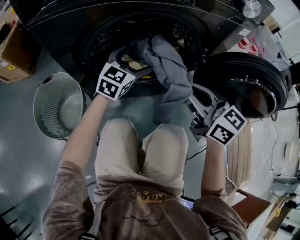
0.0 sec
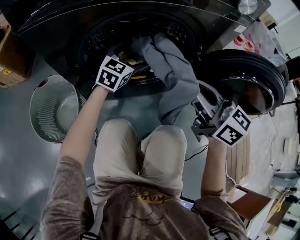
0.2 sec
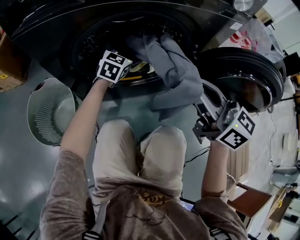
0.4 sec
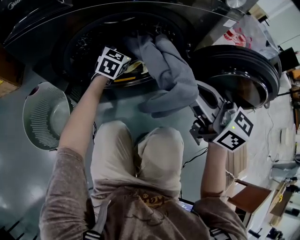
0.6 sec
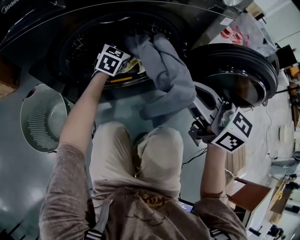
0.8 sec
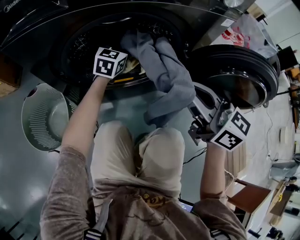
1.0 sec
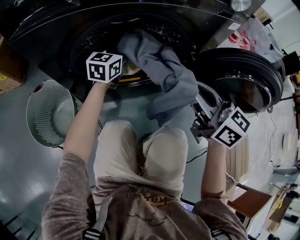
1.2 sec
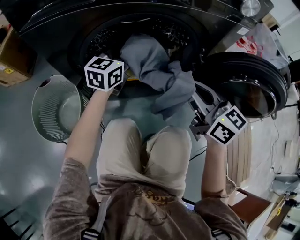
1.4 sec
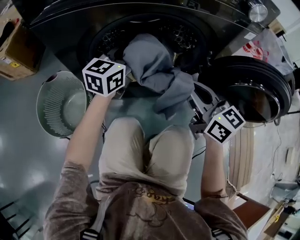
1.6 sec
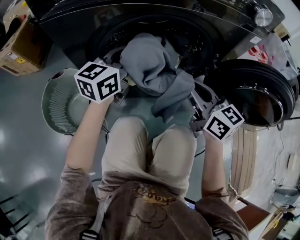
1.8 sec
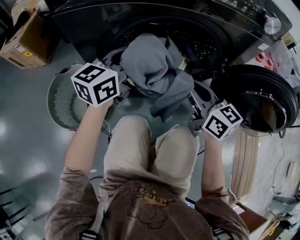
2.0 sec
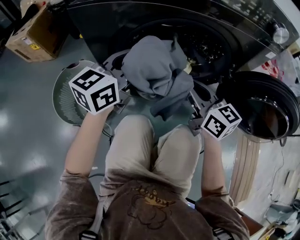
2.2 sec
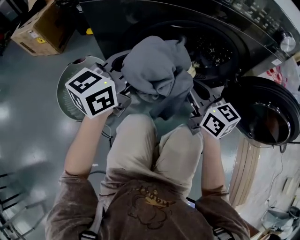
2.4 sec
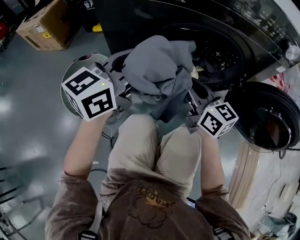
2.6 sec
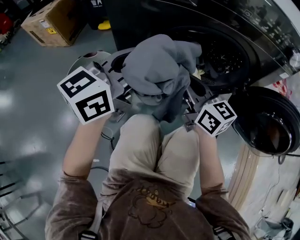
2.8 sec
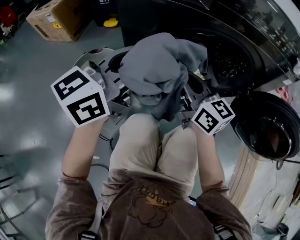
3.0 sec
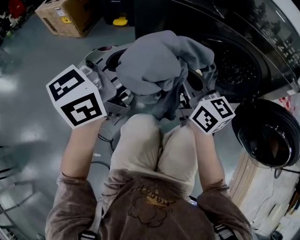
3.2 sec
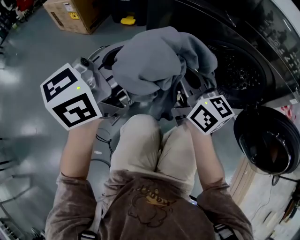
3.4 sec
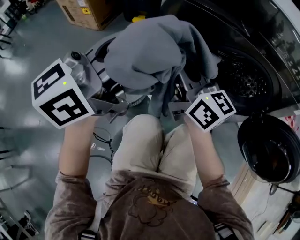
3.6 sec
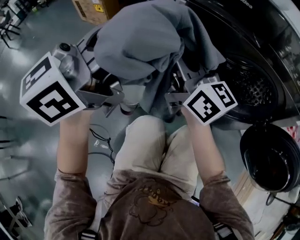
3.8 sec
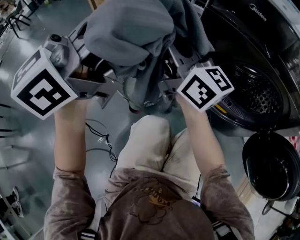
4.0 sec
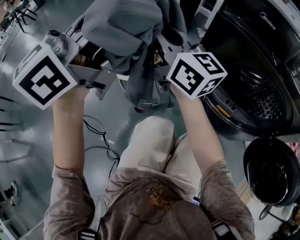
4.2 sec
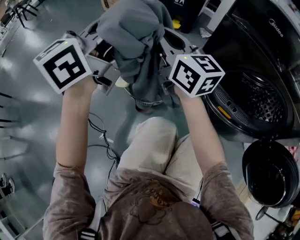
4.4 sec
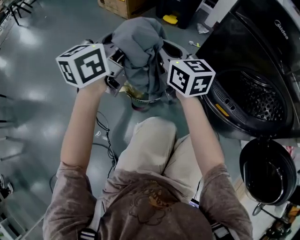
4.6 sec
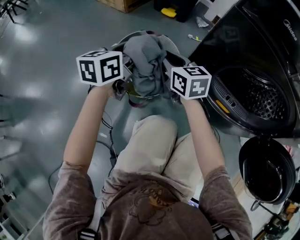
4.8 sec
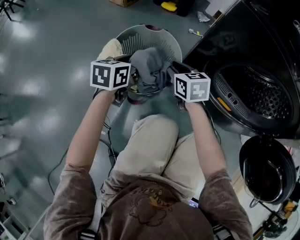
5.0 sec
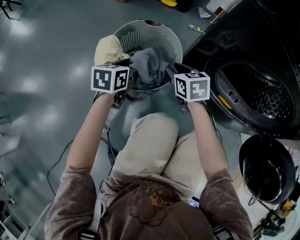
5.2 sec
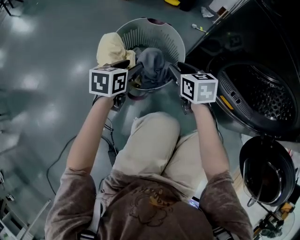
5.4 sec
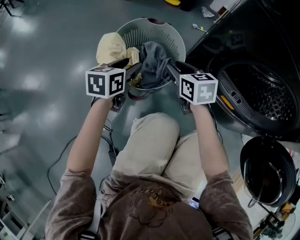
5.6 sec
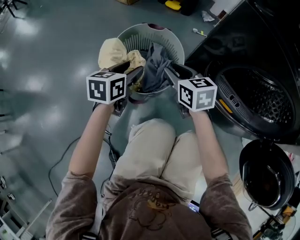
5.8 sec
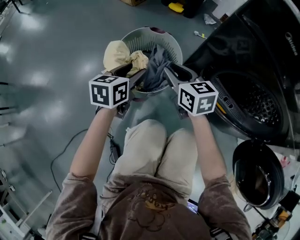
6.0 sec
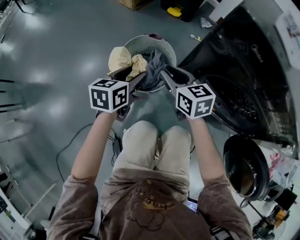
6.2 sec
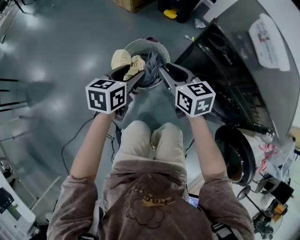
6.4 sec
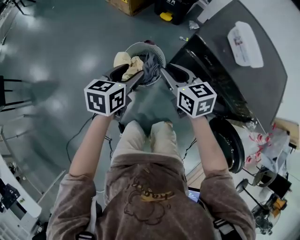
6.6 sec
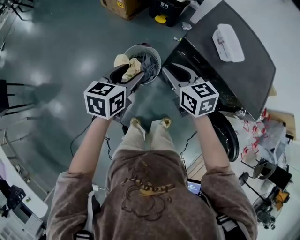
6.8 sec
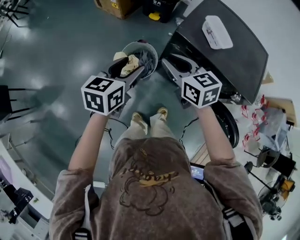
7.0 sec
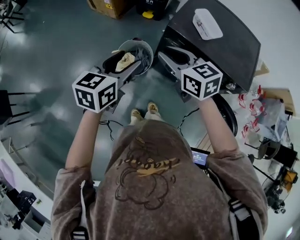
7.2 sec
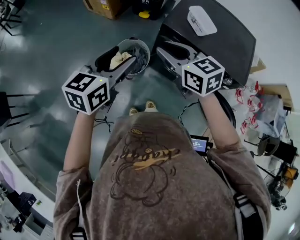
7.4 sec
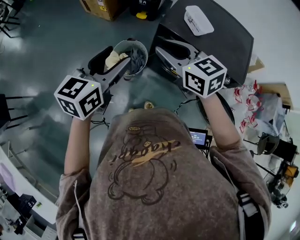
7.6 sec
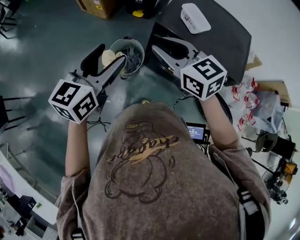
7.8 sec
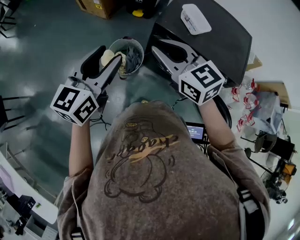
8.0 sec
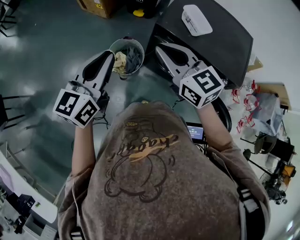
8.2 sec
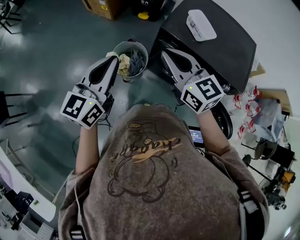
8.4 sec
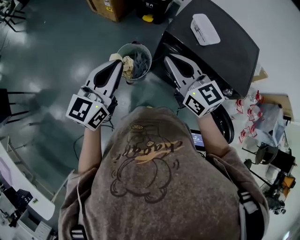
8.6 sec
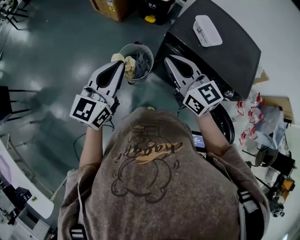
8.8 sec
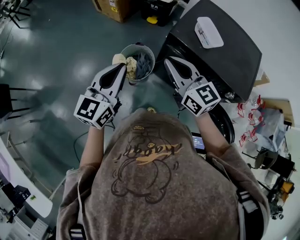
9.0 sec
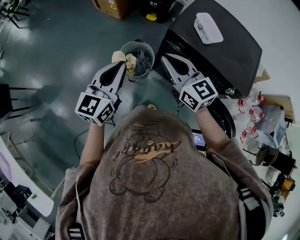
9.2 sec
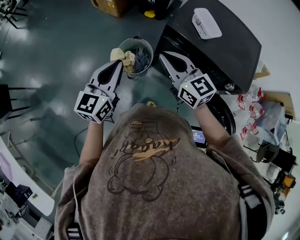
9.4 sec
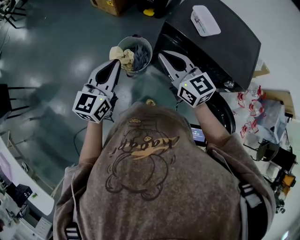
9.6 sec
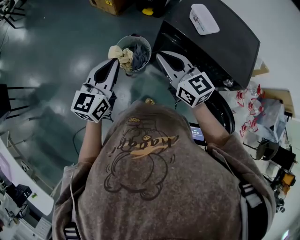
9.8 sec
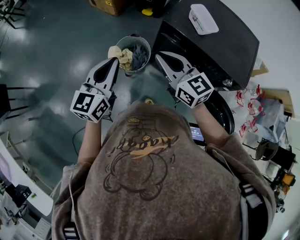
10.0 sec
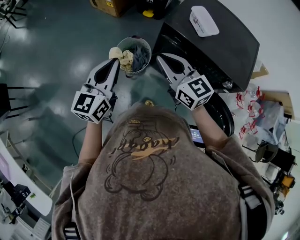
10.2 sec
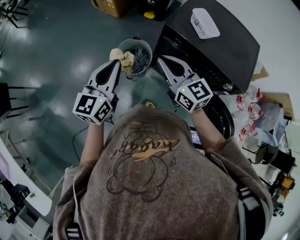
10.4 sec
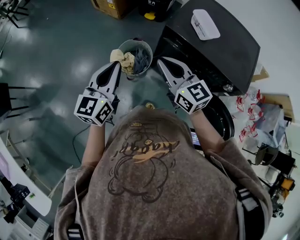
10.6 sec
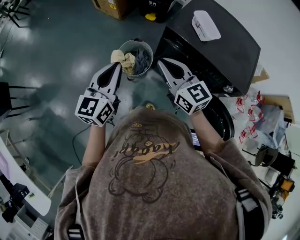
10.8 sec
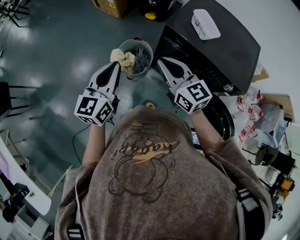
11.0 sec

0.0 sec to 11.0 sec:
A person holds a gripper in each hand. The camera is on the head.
0.0 sec to 1.6 sec: The left gripper travels upward by some 5 cm, and closes its fingers.
1.6 sec to 3.2 sec: The right gripper is displaced to the left by roughly 25 cm, while the left gripper goes some 30 cm to the left, backward and upward.
3.2 sec to 4.8 sec: The right gripper changes place by approximately 25 cm, and rotates some 30 degrees; the left gripper moves approximately 30 cm, and rotates approximately 40 degrees.
4.8 sec to 6.2 sec: The right gripper is displaced upward and backward by roughly 15 cm. Meanwhile the left gripper shifts about 10 cm backward, and goes downward and returns, roughly 15 cm each way.
6.2 sec to 7.8 sec: Both grippers move upward, some 50 cm. The left gripper swivels about 30 degrees.
7.8 sec to 9.4 sec: Both grippers move downward, approximately 5 cm. The left gripper closes up.
9.4 sec to 11.0 sec: The grippers stay close to where they were, moving slightly.

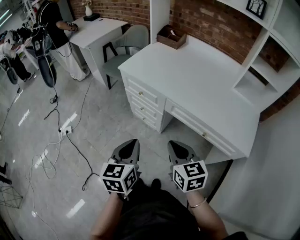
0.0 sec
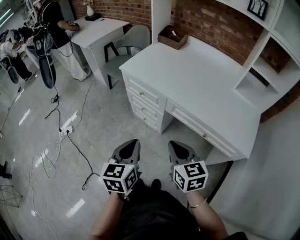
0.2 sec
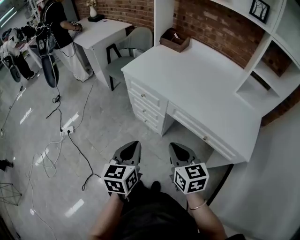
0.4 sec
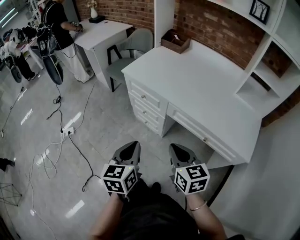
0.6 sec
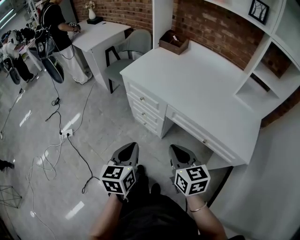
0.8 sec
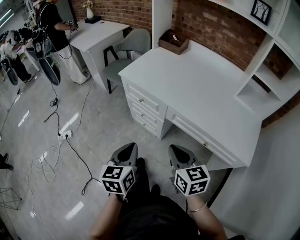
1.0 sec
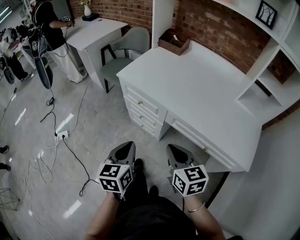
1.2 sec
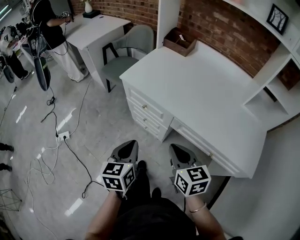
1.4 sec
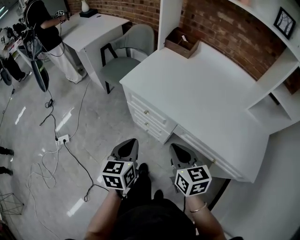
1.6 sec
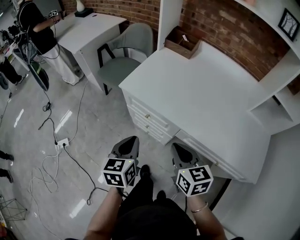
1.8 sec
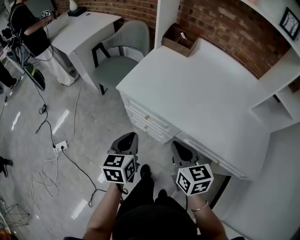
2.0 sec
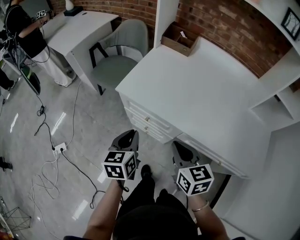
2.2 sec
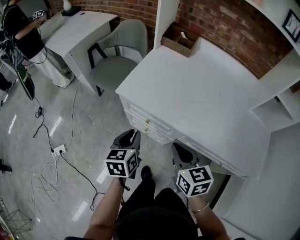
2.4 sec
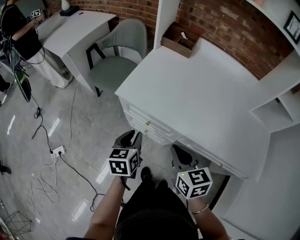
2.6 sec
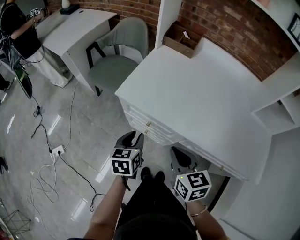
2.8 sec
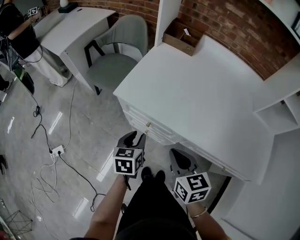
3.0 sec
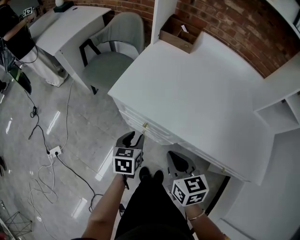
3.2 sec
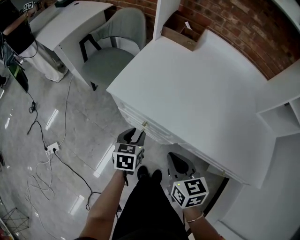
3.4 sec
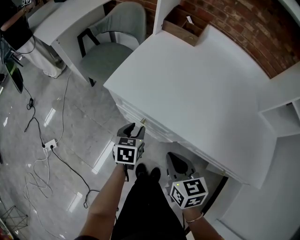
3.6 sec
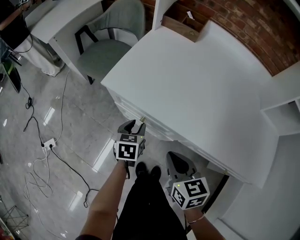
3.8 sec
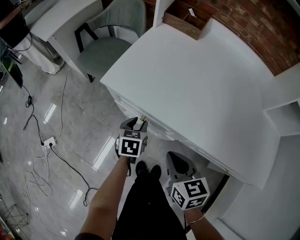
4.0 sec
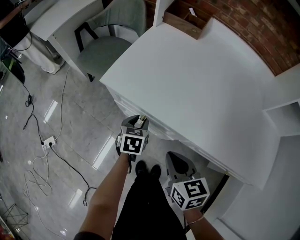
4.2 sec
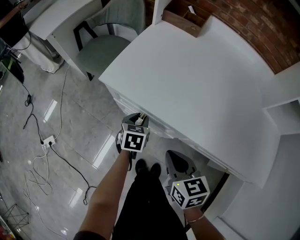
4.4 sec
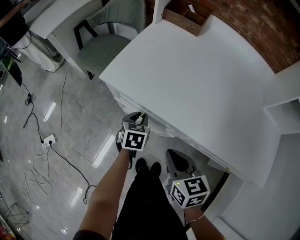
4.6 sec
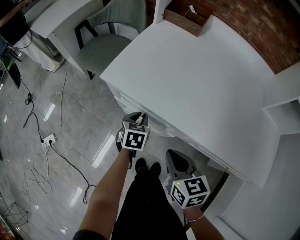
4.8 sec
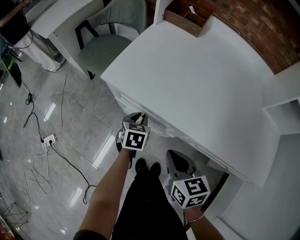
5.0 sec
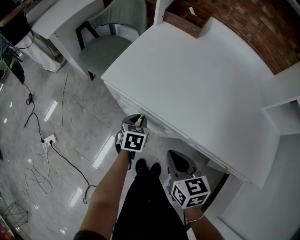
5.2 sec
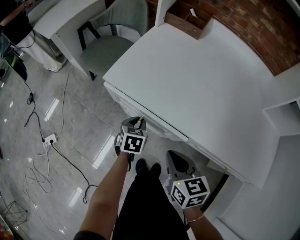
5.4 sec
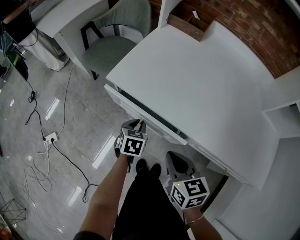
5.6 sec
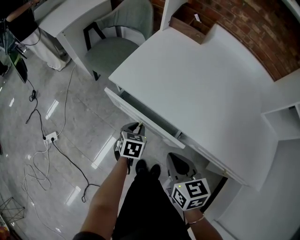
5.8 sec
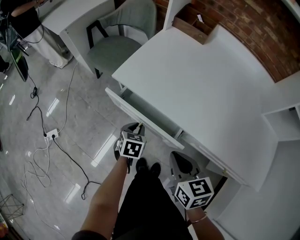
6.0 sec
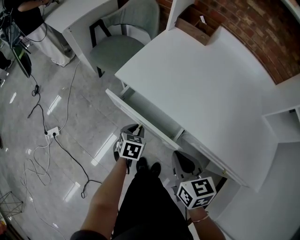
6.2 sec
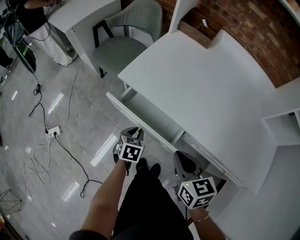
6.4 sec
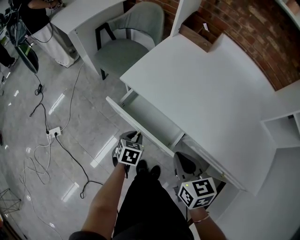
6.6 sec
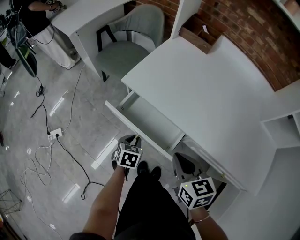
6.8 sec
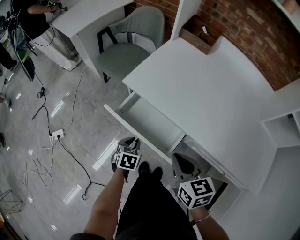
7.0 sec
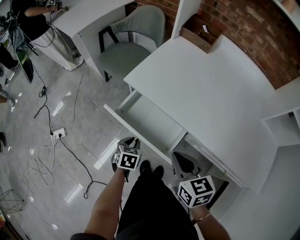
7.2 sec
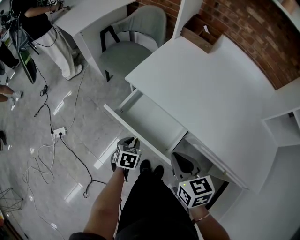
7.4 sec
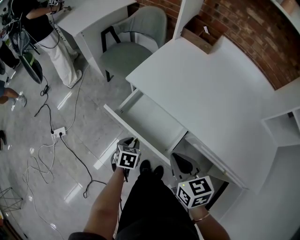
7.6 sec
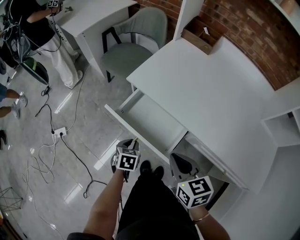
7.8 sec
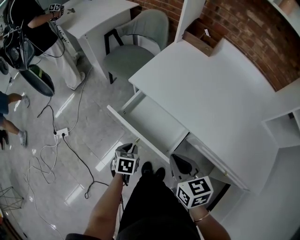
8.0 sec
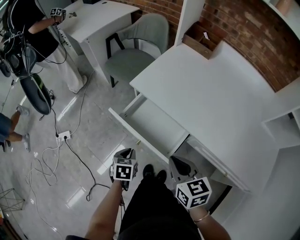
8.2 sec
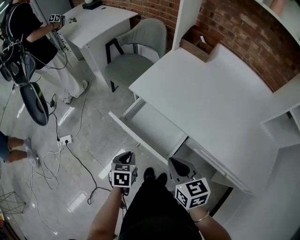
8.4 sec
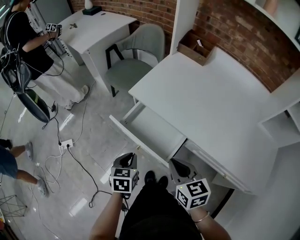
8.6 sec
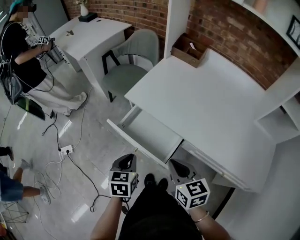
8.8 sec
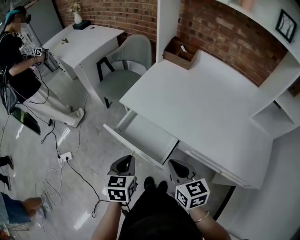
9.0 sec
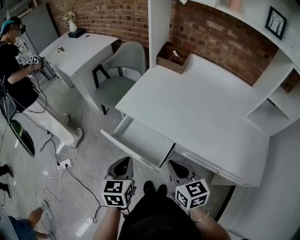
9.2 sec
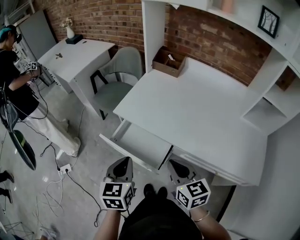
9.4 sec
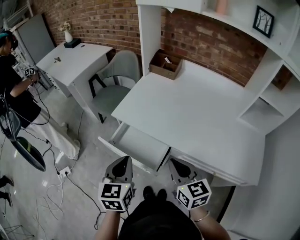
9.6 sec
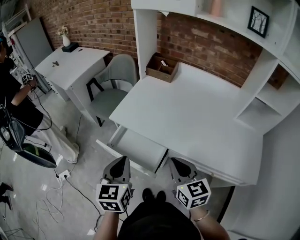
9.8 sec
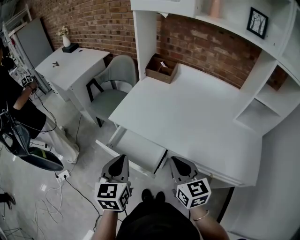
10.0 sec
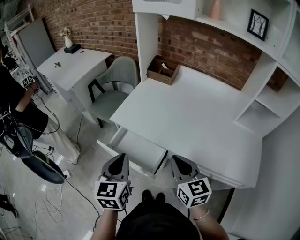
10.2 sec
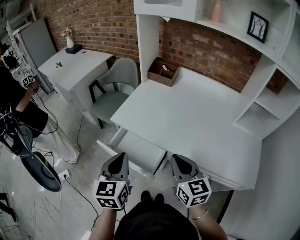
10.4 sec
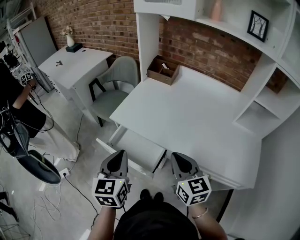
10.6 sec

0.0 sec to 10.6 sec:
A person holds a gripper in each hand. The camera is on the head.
0.0 sec to 1.6 sec: The two grippers go some 20 cm forward.
1.6 sec to 3.0 sec: The left gripper is displaced forward and downward by some 20 cm, and opens its fingers. Meanwhile the right gripper is displaced forward and downward by about 10 cm.
3.0 sec to 4.6 sec: The left gripper travels downward and forward by approximately 15 cm. Meanwhile the right gripper goes some 10 cm downward.
4.6 sec to 6.0 sec: The left gripper travels backward by approximately 5 cm.
6.0 sec to 7.6 sec: The left gripper travels backward and to the left by about 10 cm.
7.6 sec to 9.0 sec: The right gripper ends up some 5 cm from where it was; the left gripper shifts roughly 20 cm upward, and changes its angle by roughly 20 degrees.
9.0 sec to 10.6 sec: The right gripper moves upward and to the right, some 10 cm, while the left gripper heads upward, covering roughly 15 cm, and swivels approximately 20 degrees.

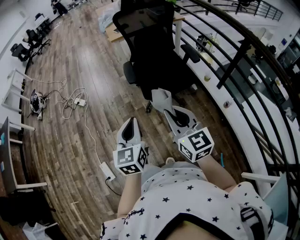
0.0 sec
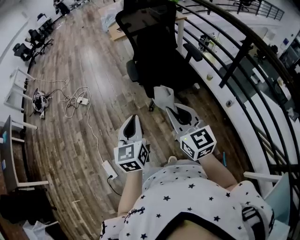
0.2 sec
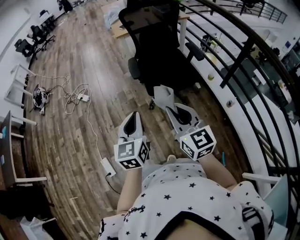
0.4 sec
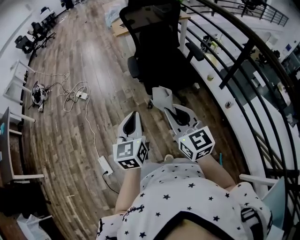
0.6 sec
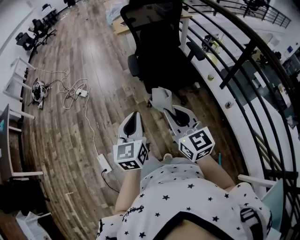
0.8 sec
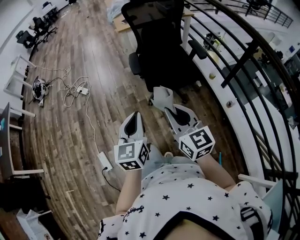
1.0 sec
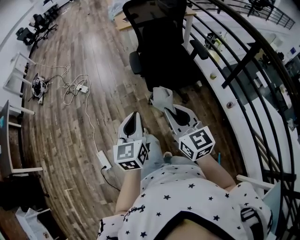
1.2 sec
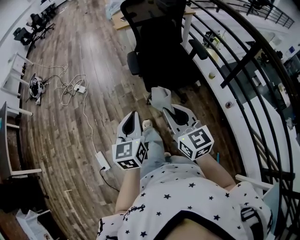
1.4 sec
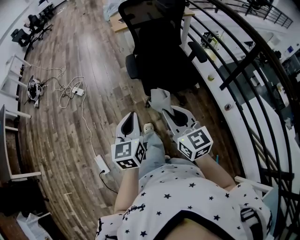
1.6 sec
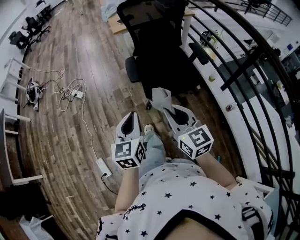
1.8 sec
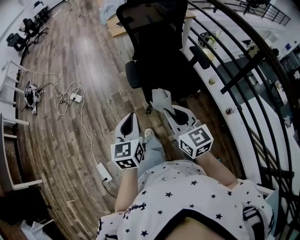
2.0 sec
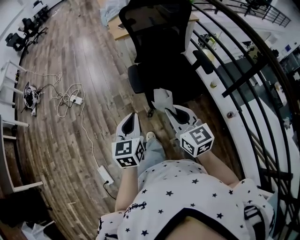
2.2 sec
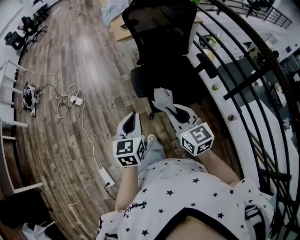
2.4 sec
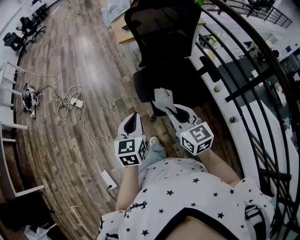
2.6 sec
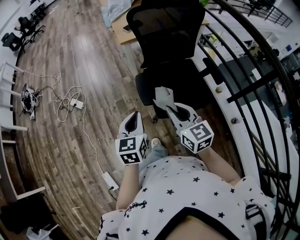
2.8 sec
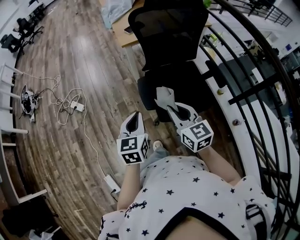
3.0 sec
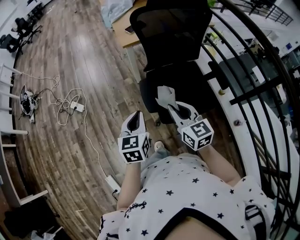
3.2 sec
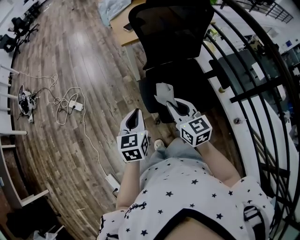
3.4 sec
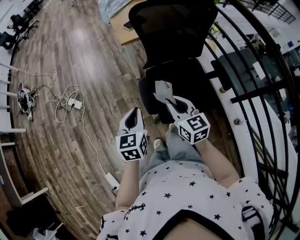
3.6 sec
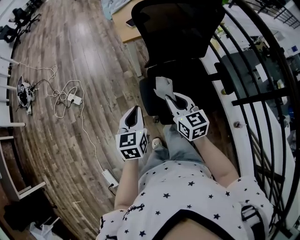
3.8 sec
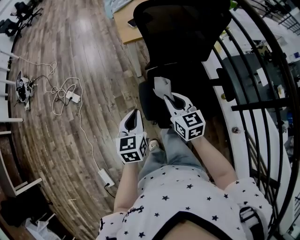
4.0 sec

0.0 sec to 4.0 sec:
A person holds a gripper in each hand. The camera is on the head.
0.0 sec to 1.4 sec: The grippers make only small movements.
1.4 sec to 2.6 sec: Both grippers travel together forward, roughly 25 cm.
2.6 sec to 4.0 sec: Both grippers travel together forward and downward, roughly 20 cm.
